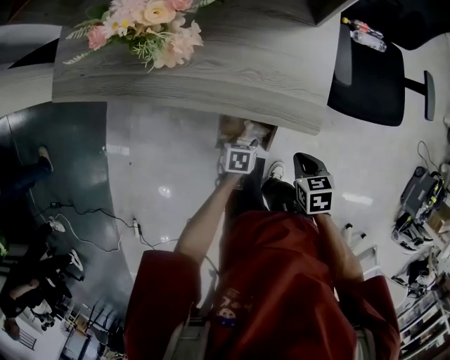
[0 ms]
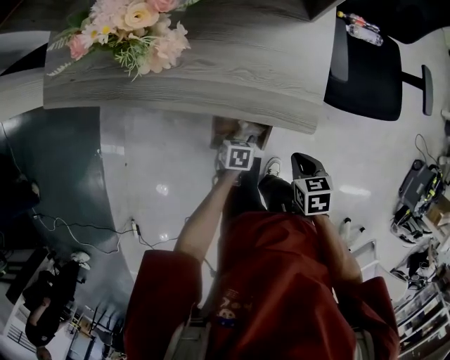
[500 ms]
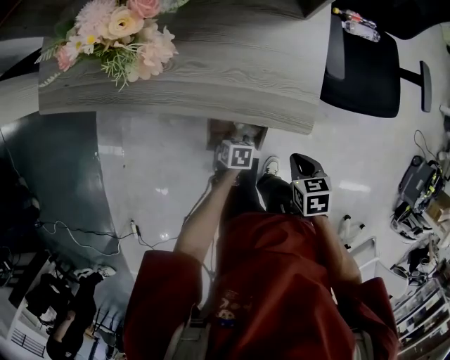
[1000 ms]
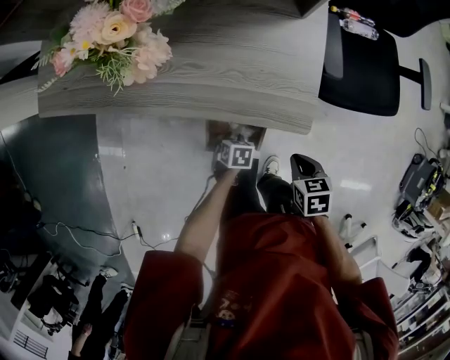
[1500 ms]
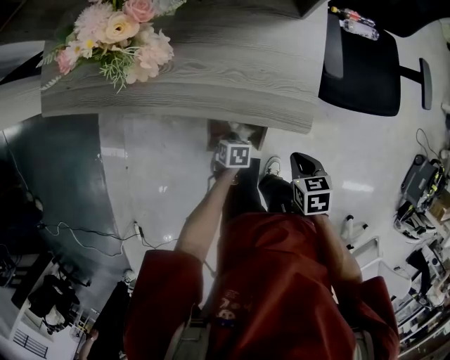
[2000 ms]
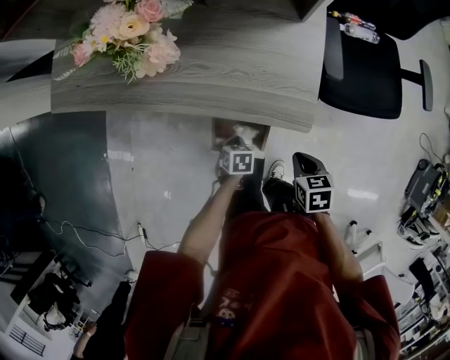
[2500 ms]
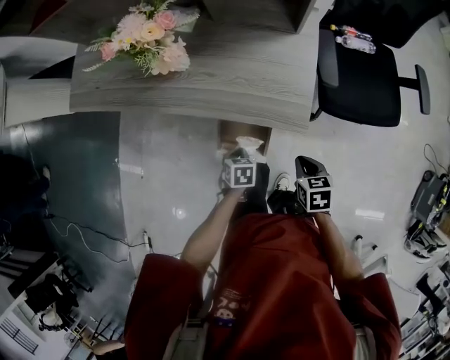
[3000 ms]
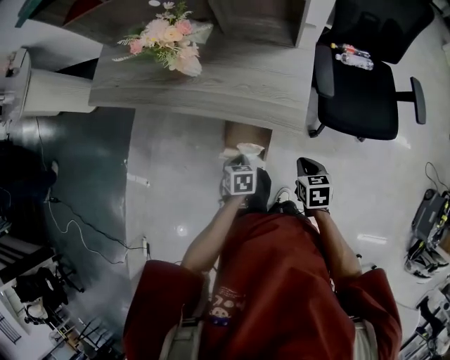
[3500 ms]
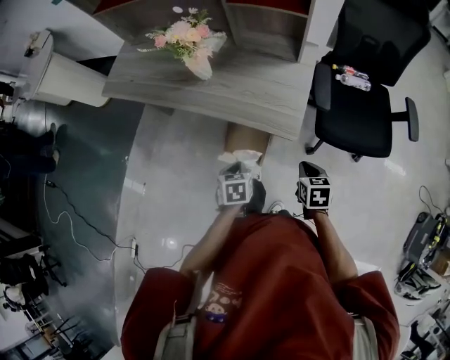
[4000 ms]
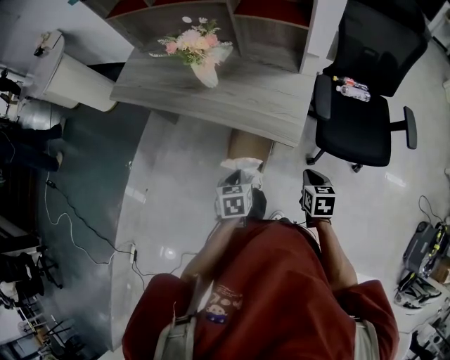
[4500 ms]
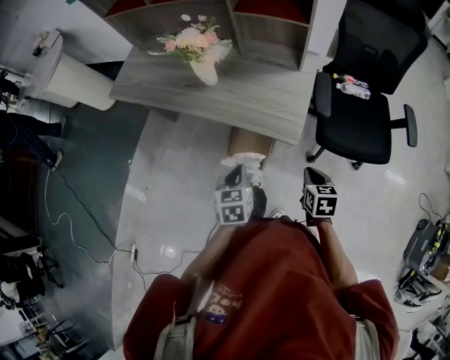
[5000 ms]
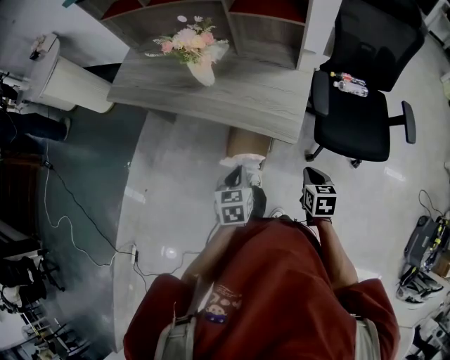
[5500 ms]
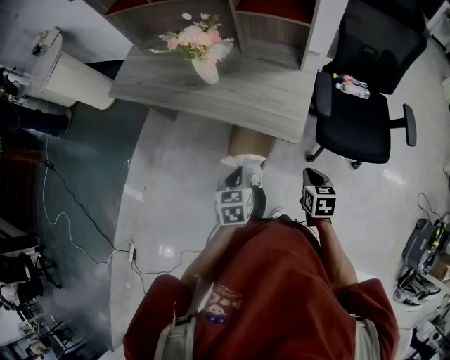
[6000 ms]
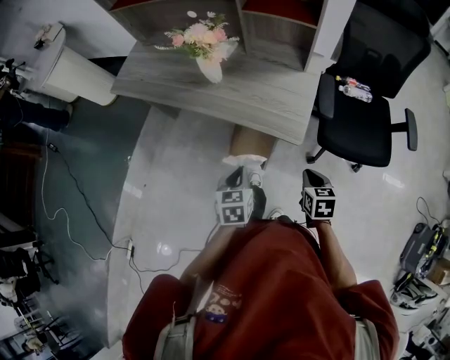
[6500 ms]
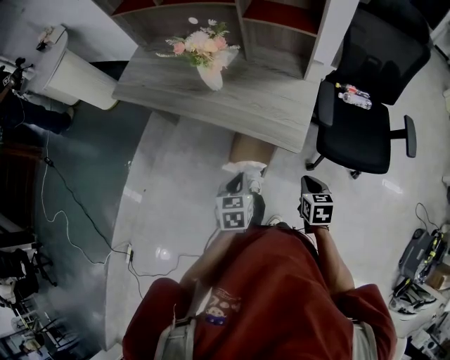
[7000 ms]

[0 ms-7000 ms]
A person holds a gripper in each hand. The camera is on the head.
0 ms to 2000 ms: The left gripper closes.
2000 ms to 3500 ms: The left gripper travels upward by approximately 15 cm. The right gripper shifts about 5 cm upward.
3500 ms to 5000 ms: The right gripper goes approximately 5 cm upward; the left gripper travels upward by approximately 15 cm, and rotates about 20 degrees.
5000 ms to 7000 ms: The grippers make only small movements.

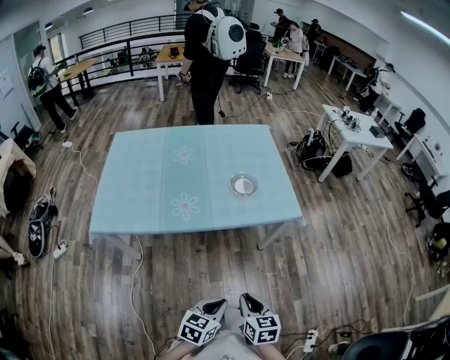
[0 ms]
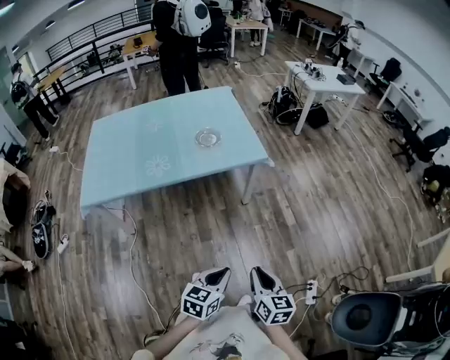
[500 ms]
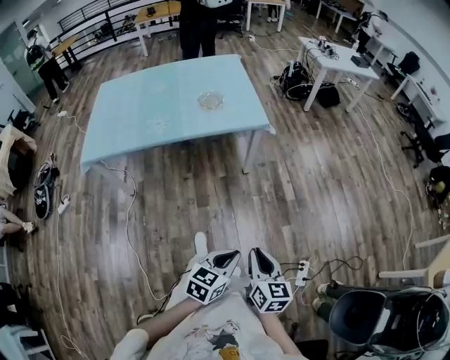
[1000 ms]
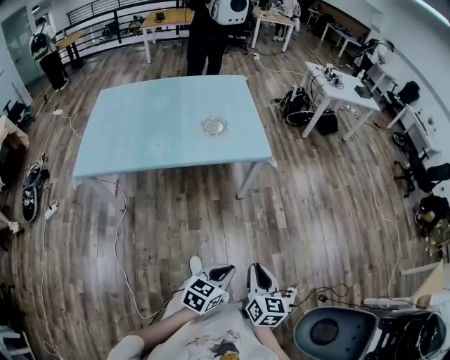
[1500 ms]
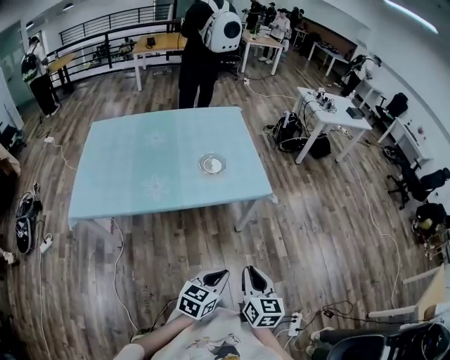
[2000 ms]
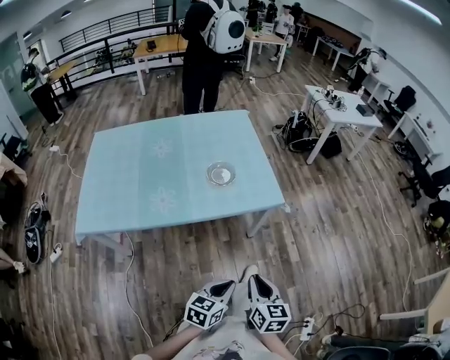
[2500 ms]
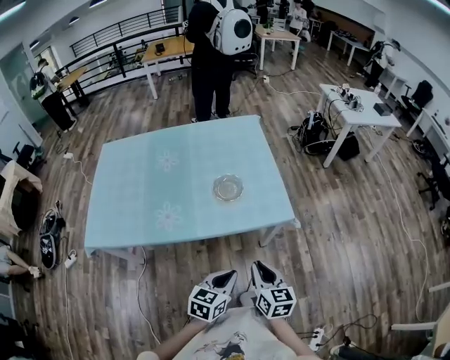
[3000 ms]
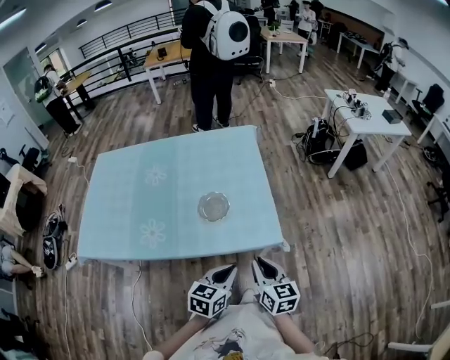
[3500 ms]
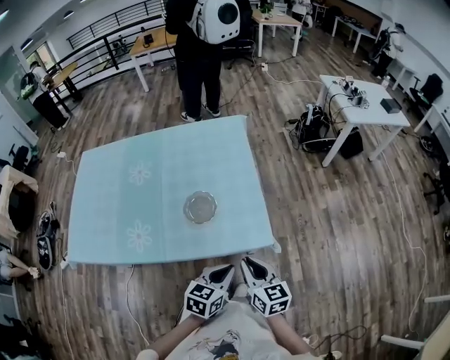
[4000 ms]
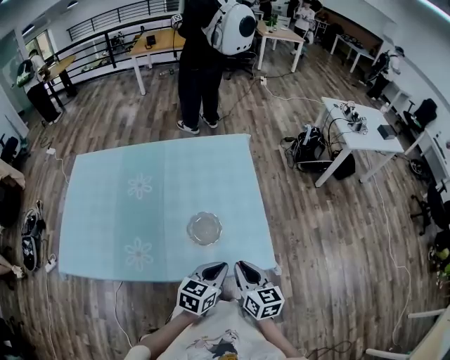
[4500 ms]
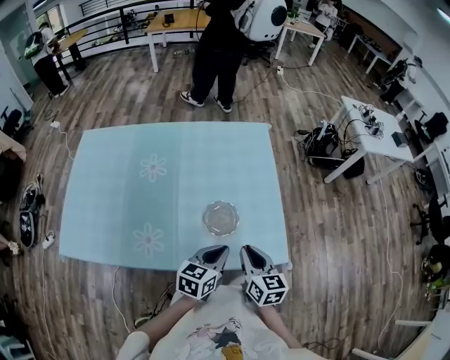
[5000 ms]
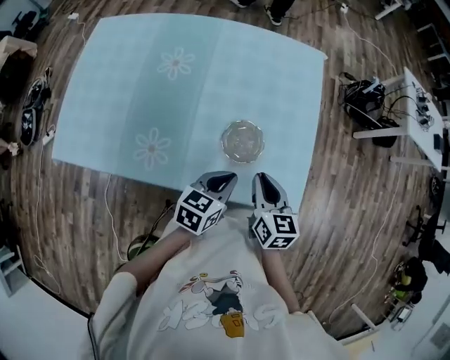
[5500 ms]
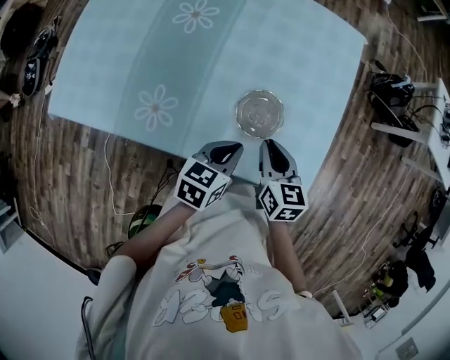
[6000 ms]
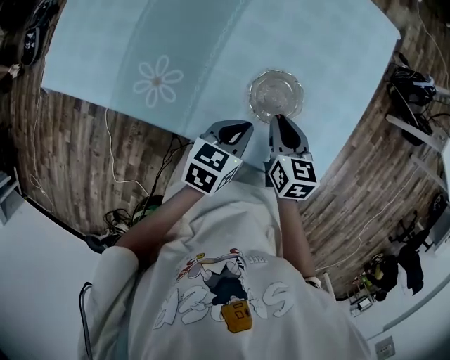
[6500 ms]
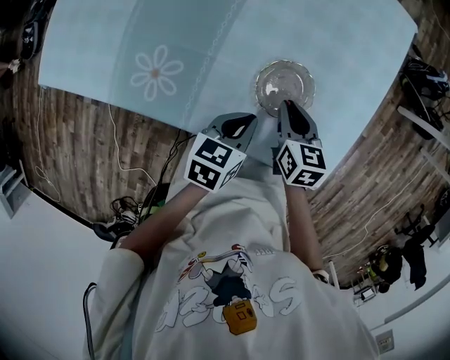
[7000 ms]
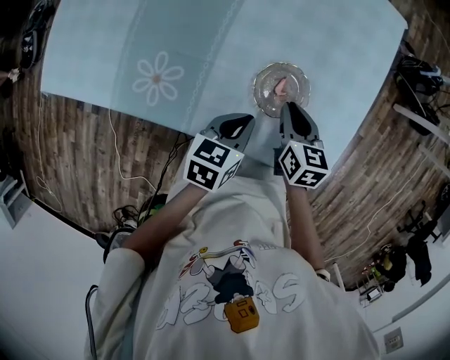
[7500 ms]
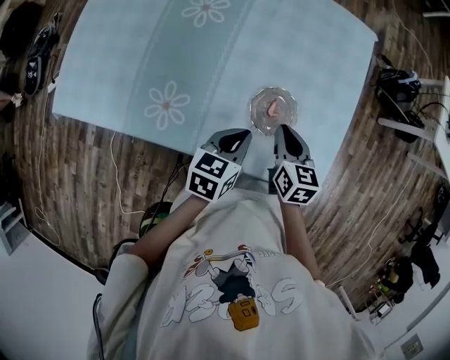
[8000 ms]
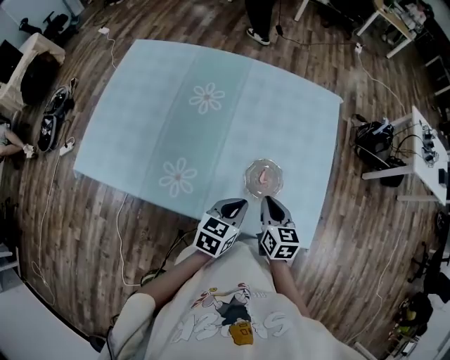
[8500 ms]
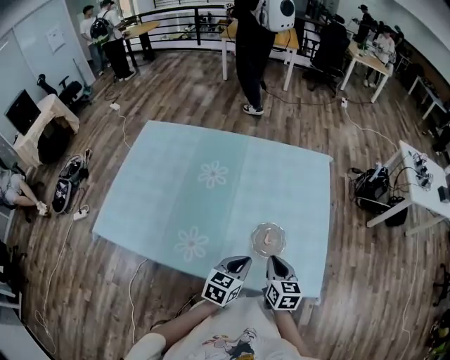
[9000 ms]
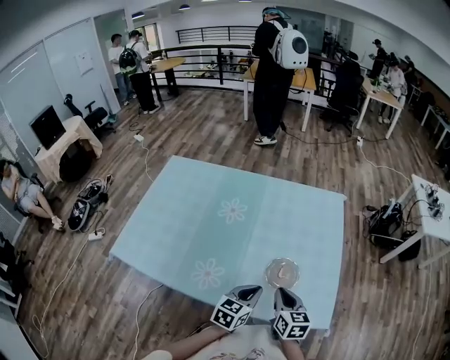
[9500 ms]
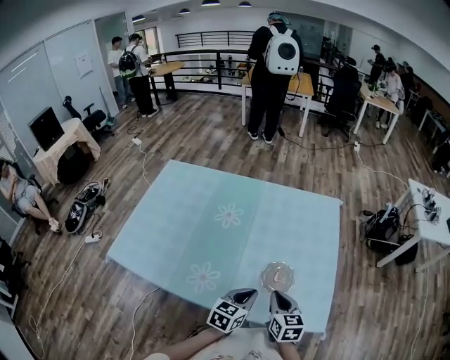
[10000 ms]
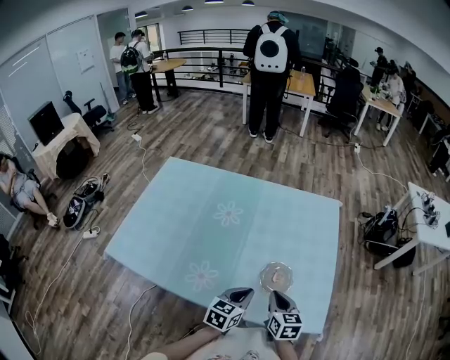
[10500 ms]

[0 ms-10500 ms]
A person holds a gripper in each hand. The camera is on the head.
0 ms to 2000 ms: The left gripper goes some 15 cm to the right. Meanwhile the right gripper goes about 15 cm to the right and upward.
2000 ms to 4000 ms: Both grippers move forward, approximately 40 cm. The right gripper rotates some 20 degrees.
4000 ms to 6500 ms: The right gripper goes about 35 cm forward, to the left and downward, and turns by roughly 30 degrees. The left gripper heads to the left, forward and downward, covering about 30 cm, and rotates some 30 degrees.
6500 ms to 8500 ms: The two grippers go roughly 10 cm upward.
8500 ms to 10500 ms: The right gripper shifts approximately 5 cm upward.

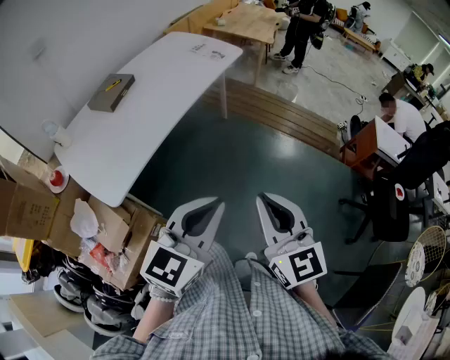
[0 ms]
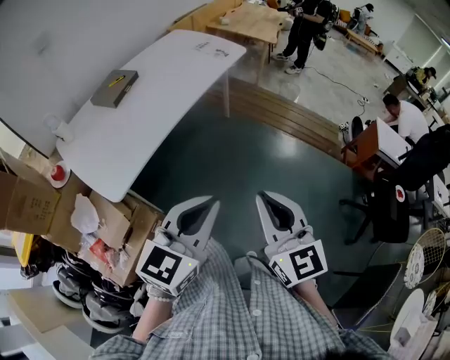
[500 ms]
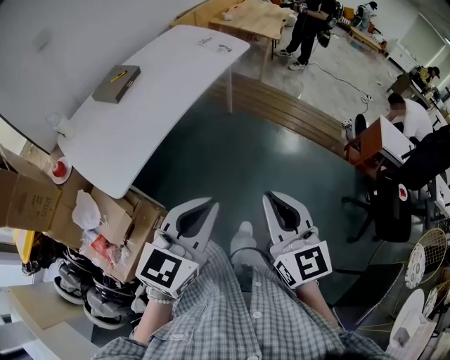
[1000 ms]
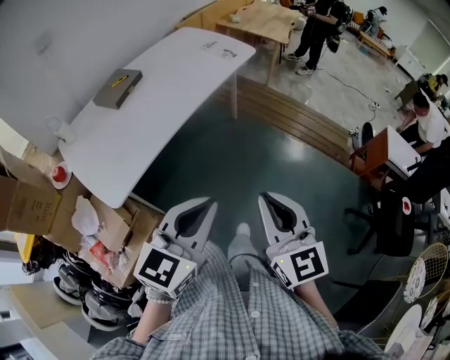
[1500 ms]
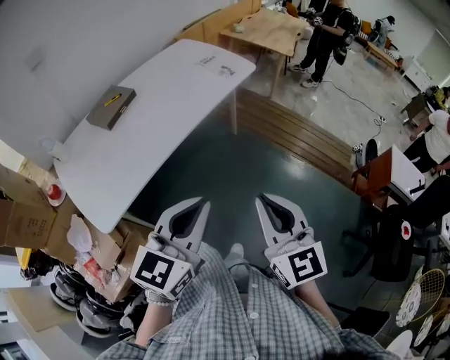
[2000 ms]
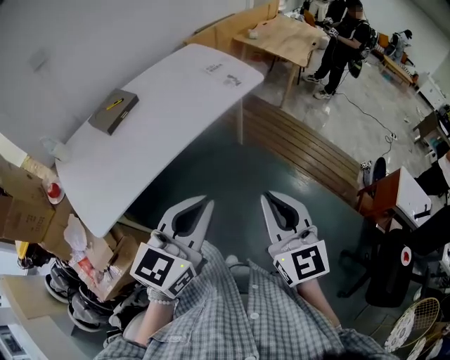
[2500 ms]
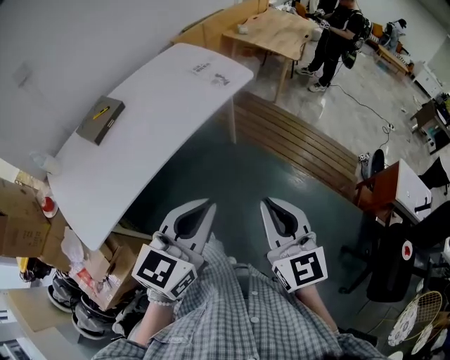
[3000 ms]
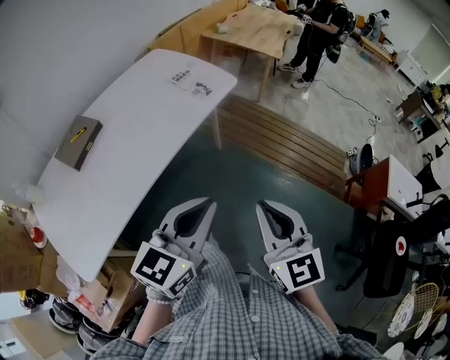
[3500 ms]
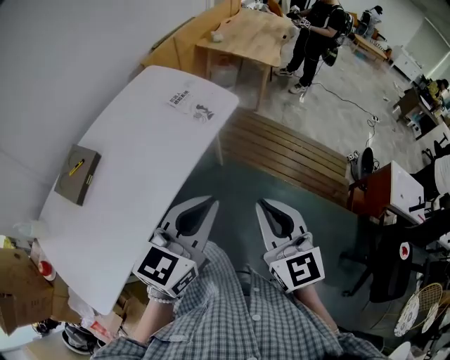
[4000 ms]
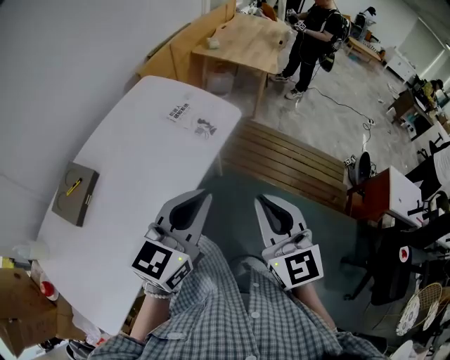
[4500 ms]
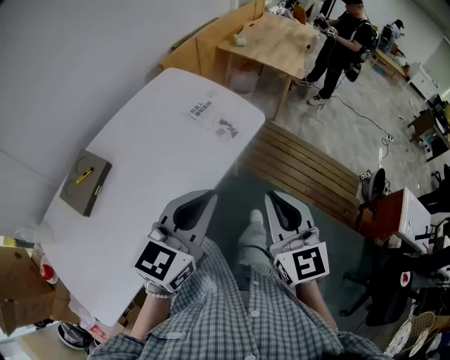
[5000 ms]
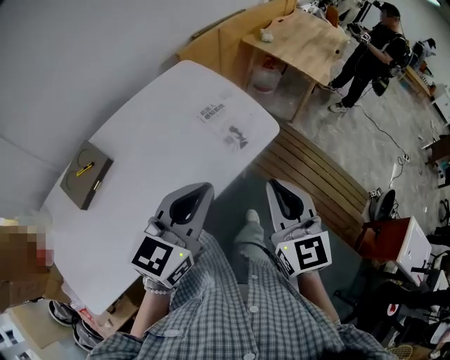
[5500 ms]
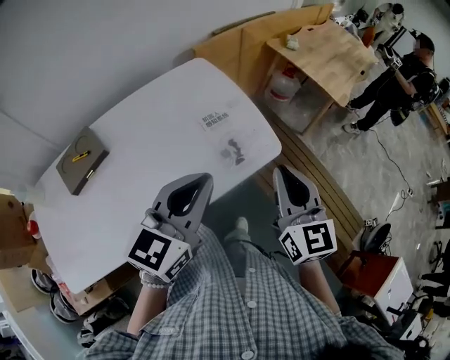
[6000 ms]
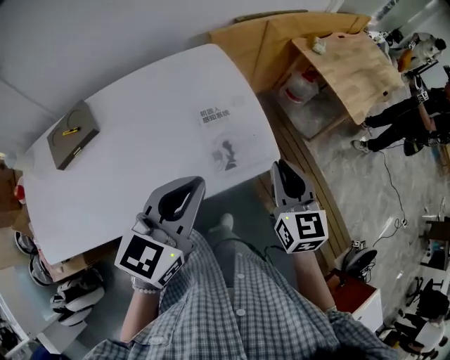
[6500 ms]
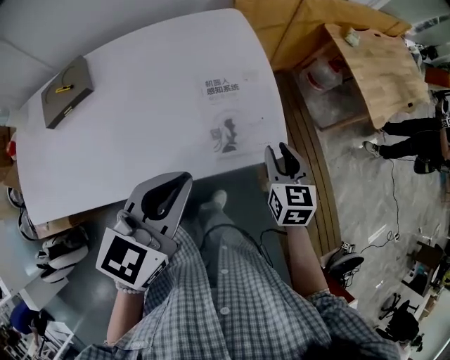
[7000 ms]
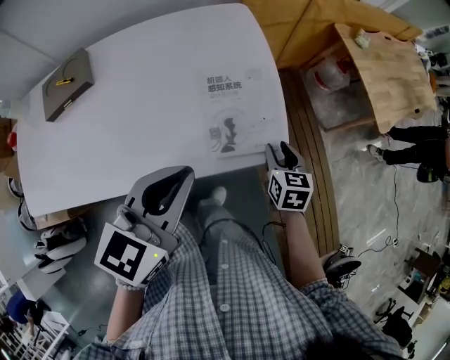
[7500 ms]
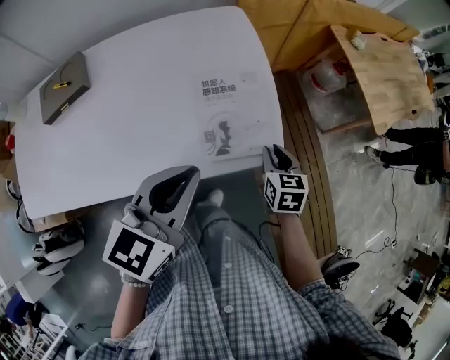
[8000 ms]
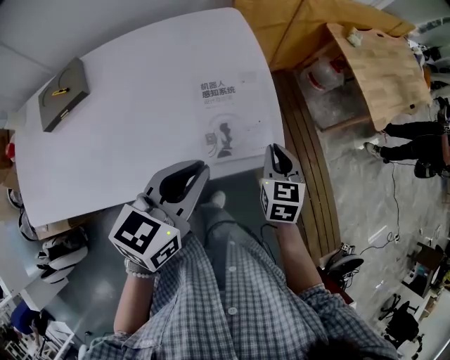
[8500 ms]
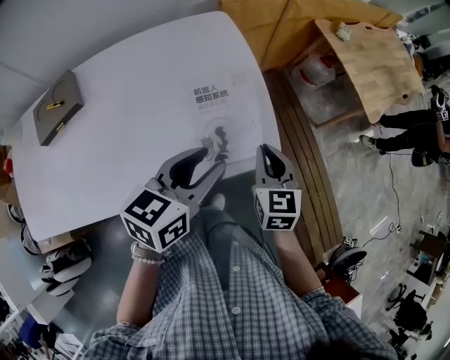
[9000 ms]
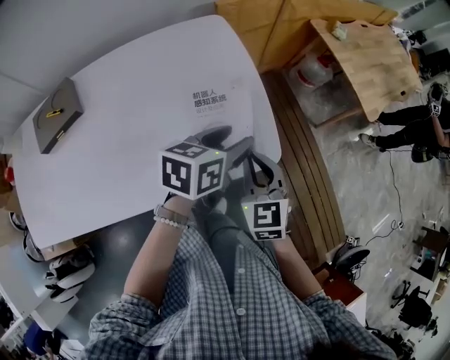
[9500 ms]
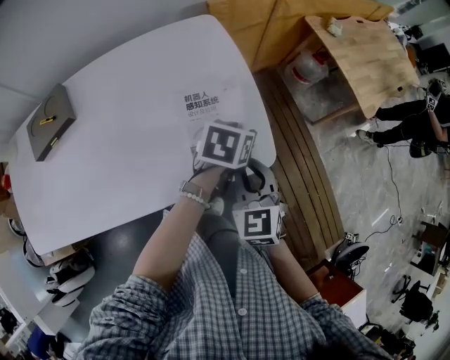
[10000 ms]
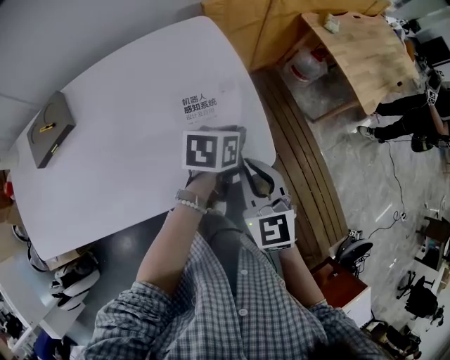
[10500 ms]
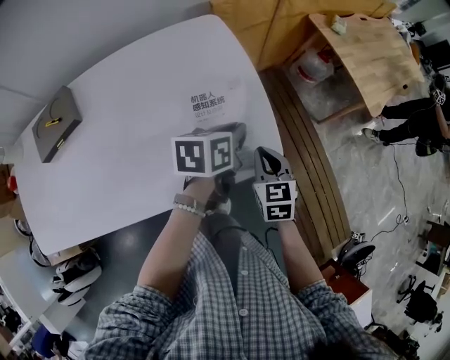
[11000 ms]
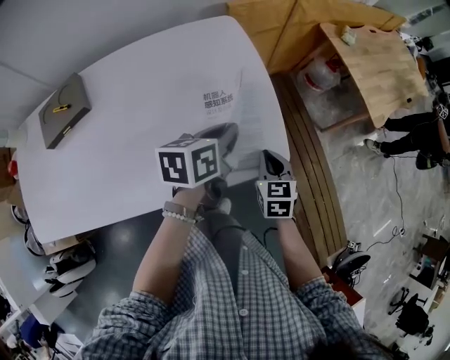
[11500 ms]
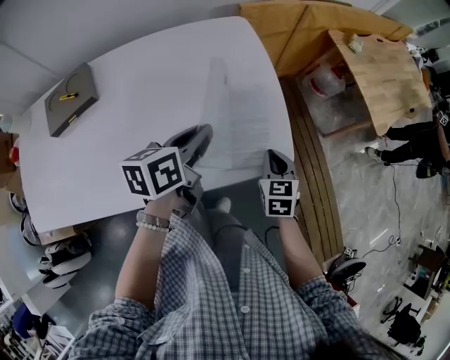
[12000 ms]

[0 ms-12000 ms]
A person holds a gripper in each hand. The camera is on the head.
0 ms to 2000 ms: Both grippers move forward, about 15 cm.
2000 ms to 4000 ms: Both grippers move forward, approximately 30 cm.
4000 ms to 6000 ms: Both grippers move forward, approximately 30 cm. The left gripper changes its angle by approximately 30 degrees.
6000 ms to 8000 ms: The right gripper shifts about 30 cm downward and forward, and angles its fingers downward, by about 40 degrees. Meanwhile the left gripper moves downward, to the right and forward, roughly 10 cm, and turns by approximately 20 degrees.
8000 ms to 10000 ms: The left gripper is displaced downward, forward and to the right by approximately 25 cm, swivels about 40 degrees, and opens up; the right gripper goes some 10 cm upward and to the left, and changes its angle by approximately 30 degrees.
10000 ms to 12000 ms: The left gripper heads to the left, upward and backward, covering about 20 cm, rotates about 30 degrees, and closes; the right gripper shifts about 10 cm downward.
